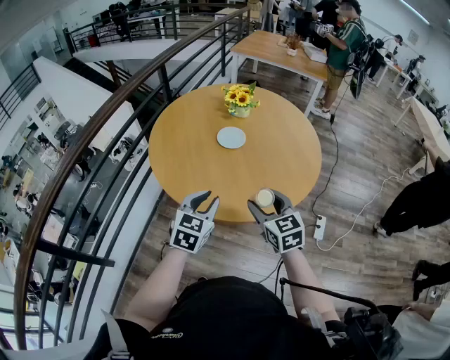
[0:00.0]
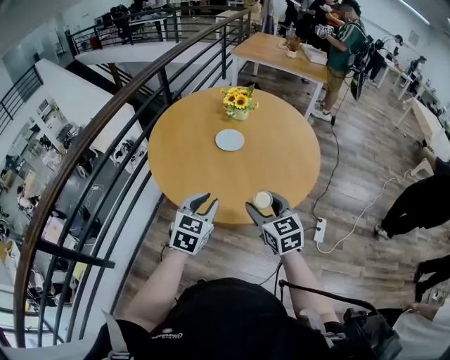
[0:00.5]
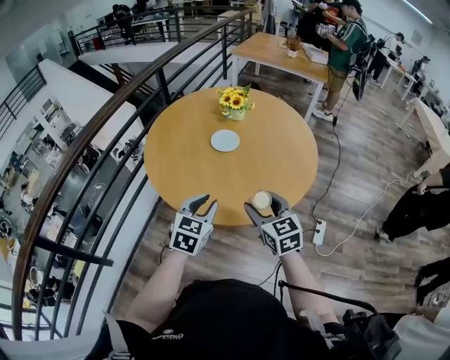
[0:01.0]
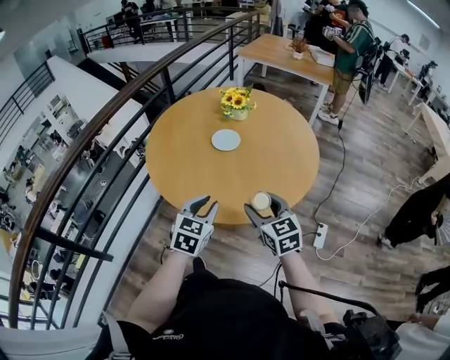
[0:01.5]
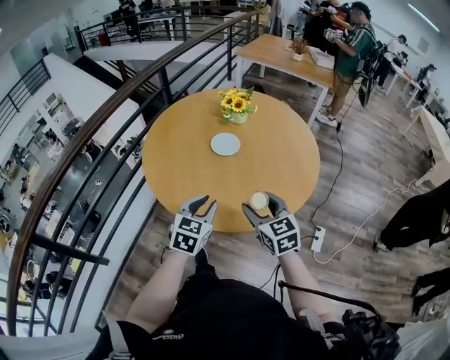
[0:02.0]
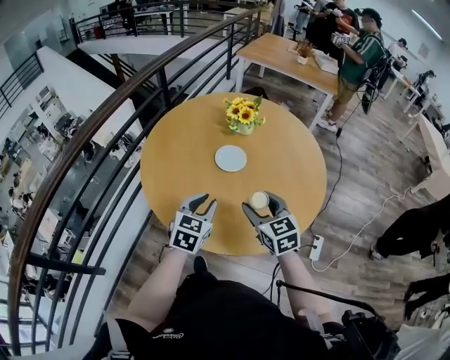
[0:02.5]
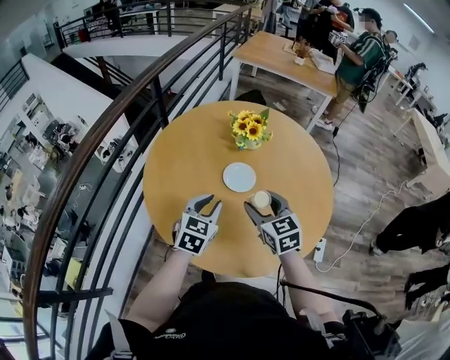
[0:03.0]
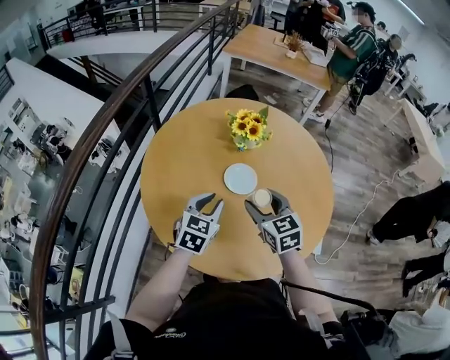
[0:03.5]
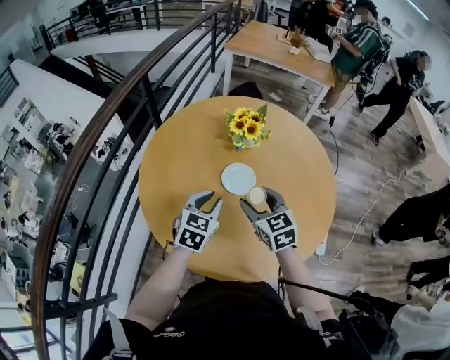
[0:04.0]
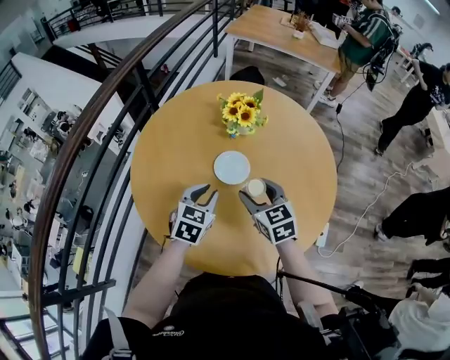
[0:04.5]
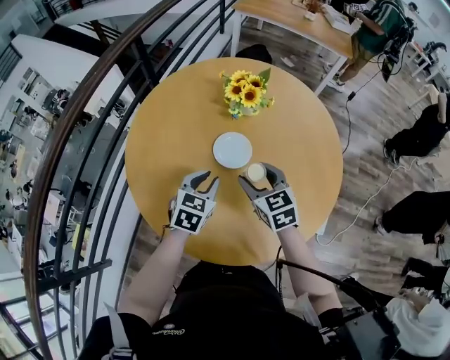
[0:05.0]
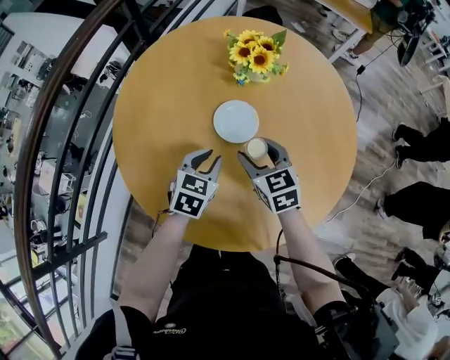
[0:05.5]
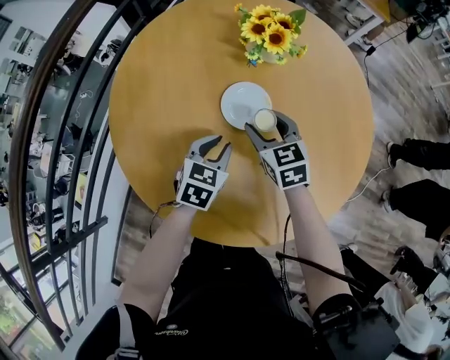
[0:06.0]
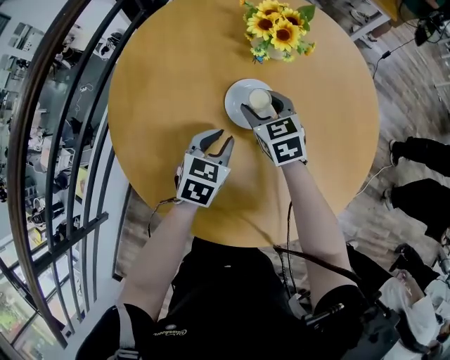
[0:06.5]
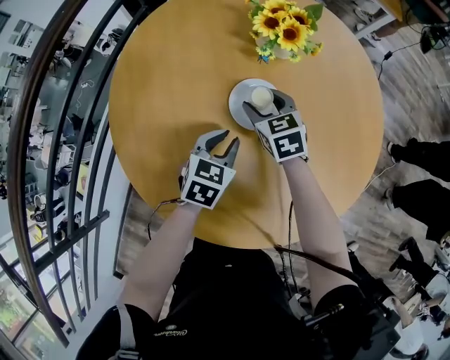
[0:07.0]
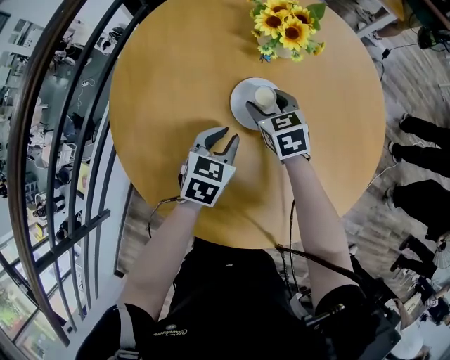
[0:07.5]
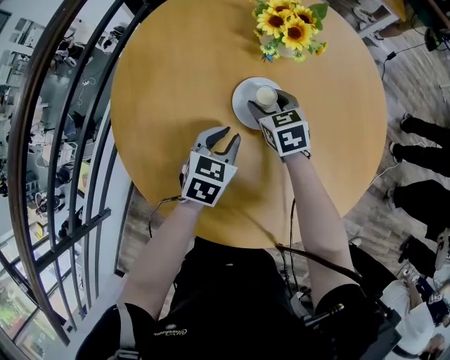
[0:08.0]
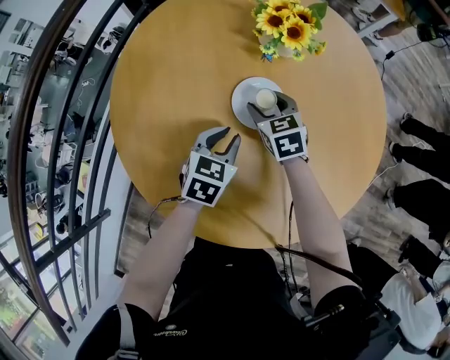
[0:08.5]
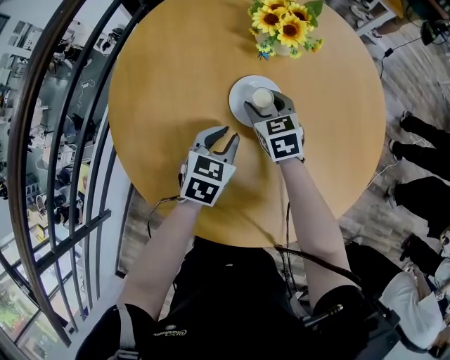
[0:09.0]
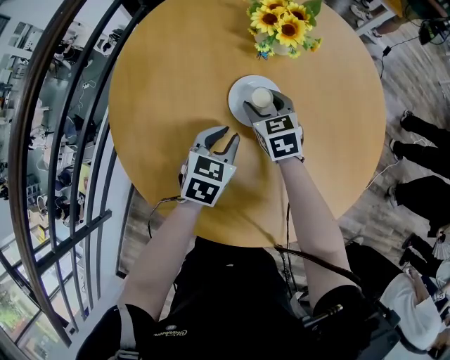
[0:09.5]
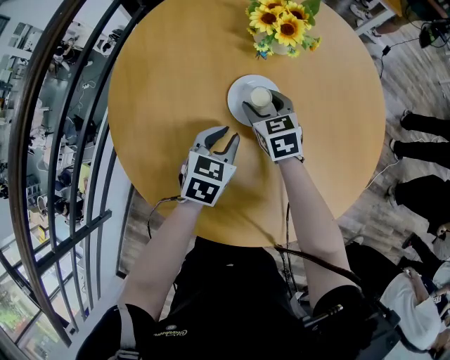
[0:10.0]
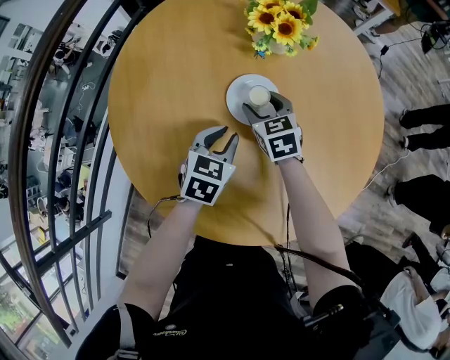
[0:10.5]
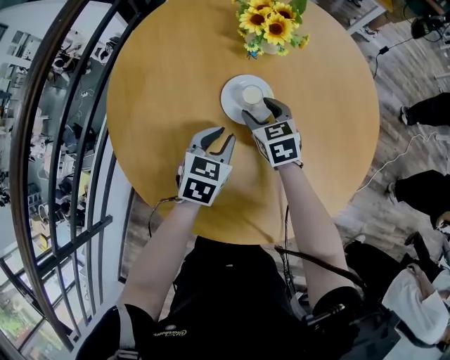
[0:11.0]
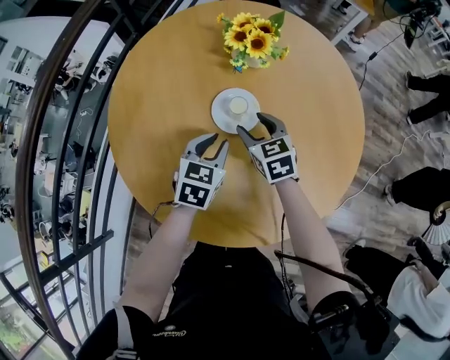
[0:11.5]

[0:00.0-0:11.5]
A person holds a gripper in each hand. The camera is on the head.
0:00.0 to 0:02.0: The right gripper ends up some 5 cm from where it was; the left gripper shifts about 5 cm to the right.
0:02.0 to 0:04.0: The left gripper shifts about 25 cm forward, while the right gripper moves forward and to the left, about 25 cm.
0:04.0 to 0:06.0: The right gripper shifts some 15 cm downward and forward, while the left gripper heads downward, covering approximately 15 cm.
0:06.0 to 0:07.5: The right gripper moves forward, approximately 5 cm.
0:07.5 to 0:09.5: The two grippers keep their place.
0:09.5 to 0:11.5: The right gripper moves backward, about 5 cm.

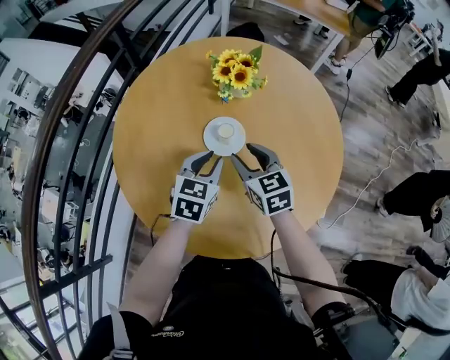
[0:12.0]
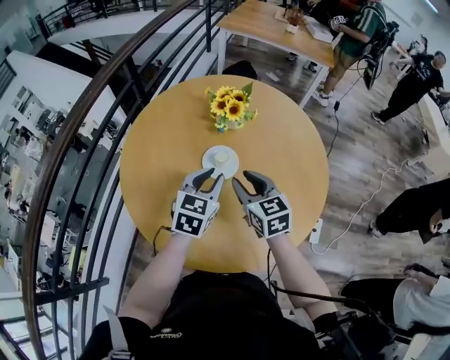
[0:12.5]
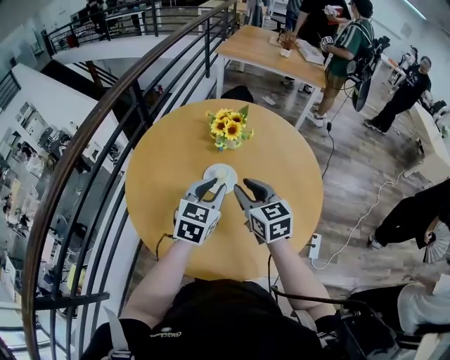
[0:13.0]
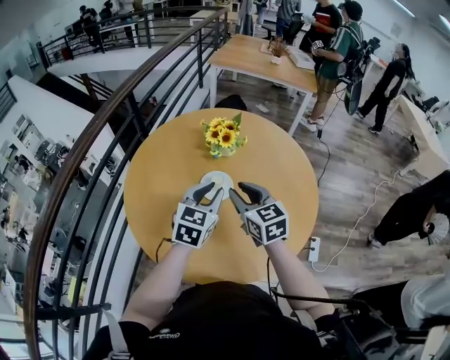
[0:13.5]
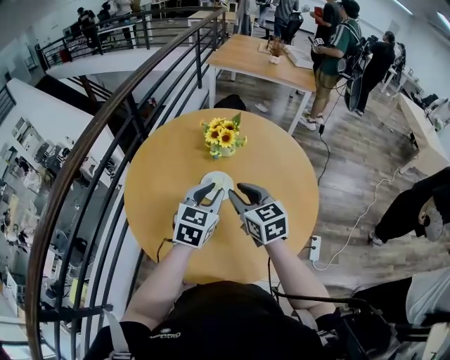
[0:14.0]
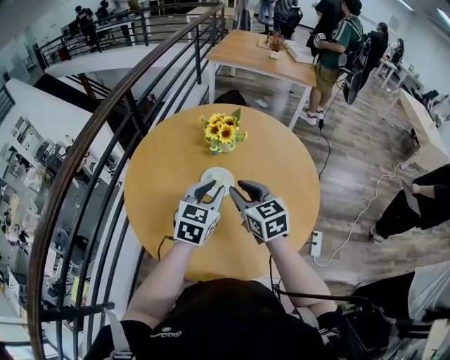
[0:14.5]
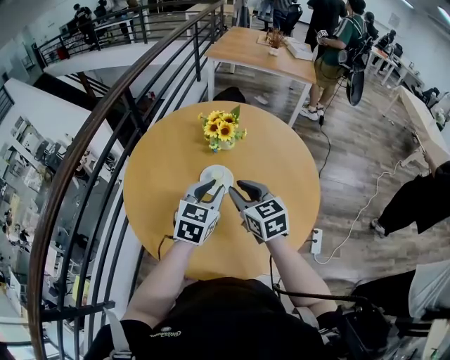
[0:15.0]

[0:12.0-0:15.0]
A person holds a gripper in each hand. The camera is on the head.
0:12.0 to 0:13.5: The right gripper travels upward and backward by roughly 15 cm, while the left gripper shifts approximately 15 cm upward.
0:13.5 to 0:15.0: The grippers make only small movements.

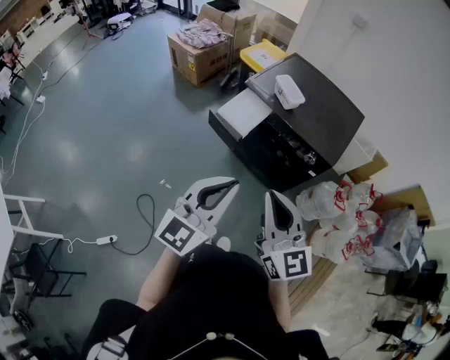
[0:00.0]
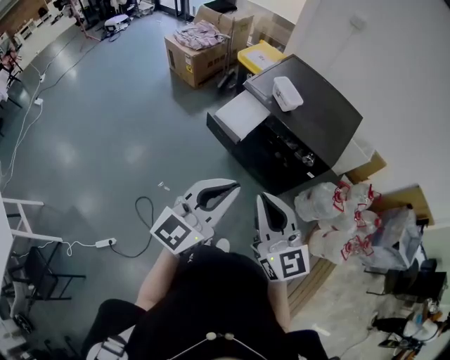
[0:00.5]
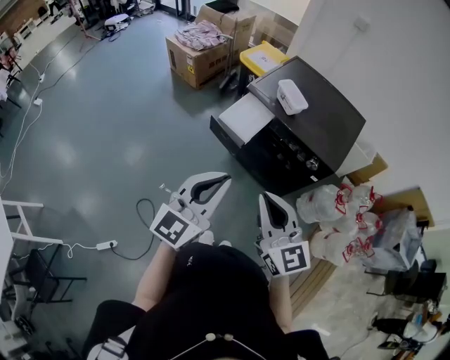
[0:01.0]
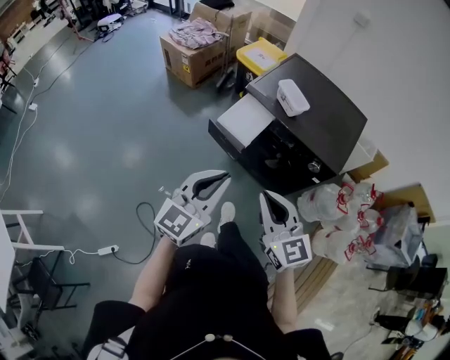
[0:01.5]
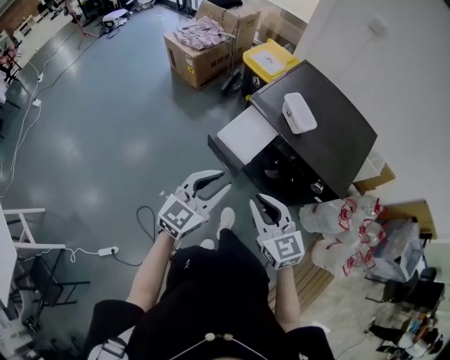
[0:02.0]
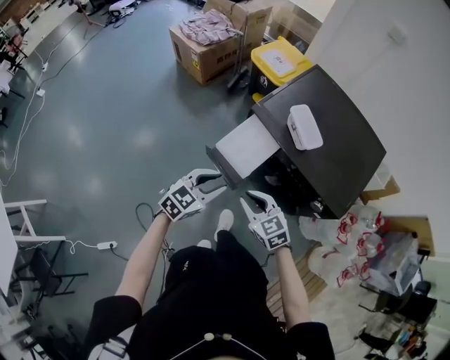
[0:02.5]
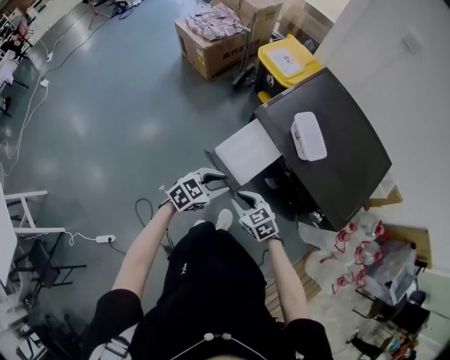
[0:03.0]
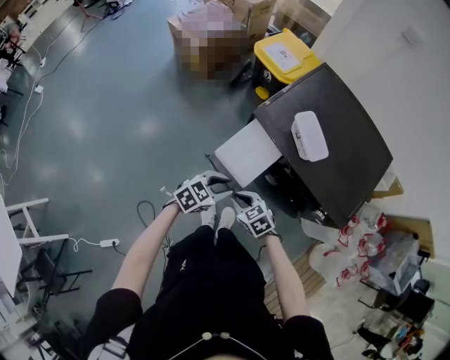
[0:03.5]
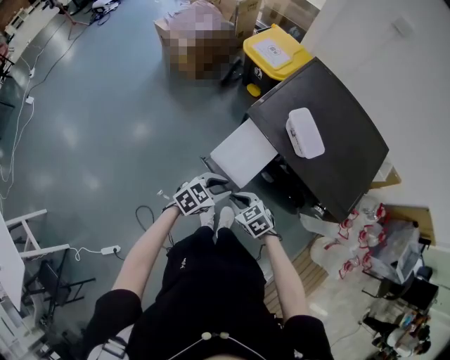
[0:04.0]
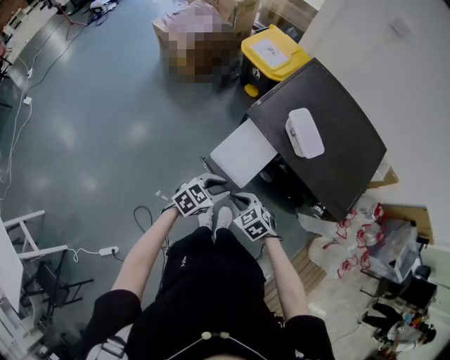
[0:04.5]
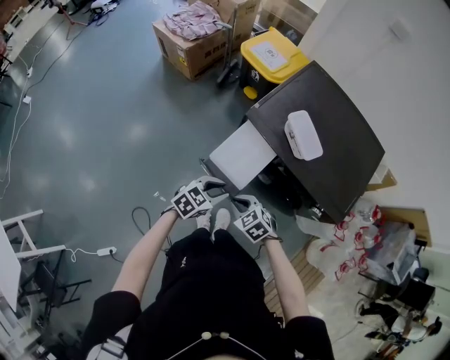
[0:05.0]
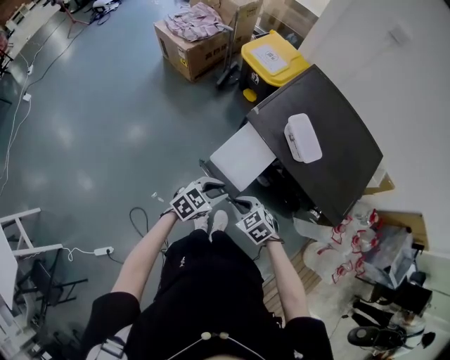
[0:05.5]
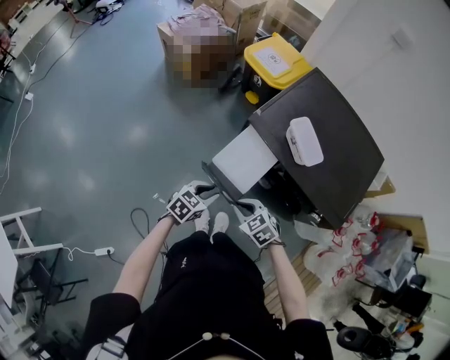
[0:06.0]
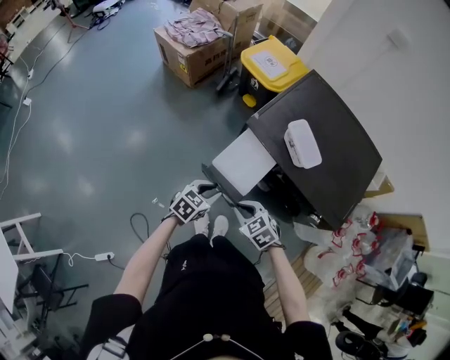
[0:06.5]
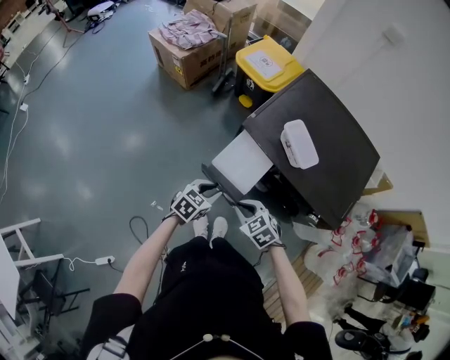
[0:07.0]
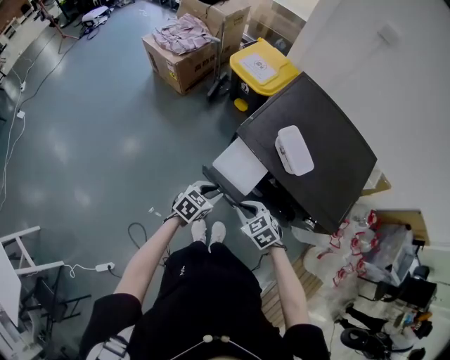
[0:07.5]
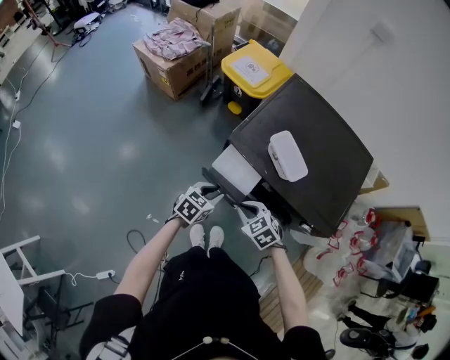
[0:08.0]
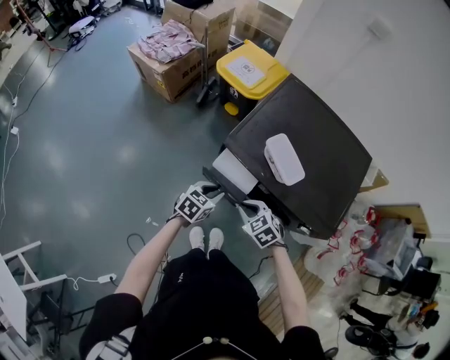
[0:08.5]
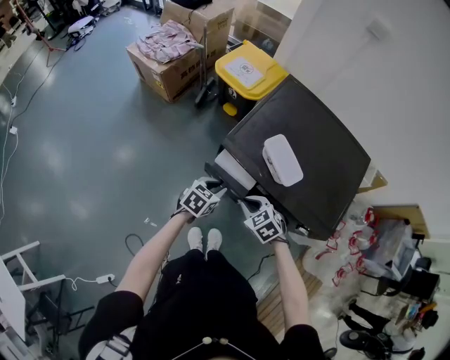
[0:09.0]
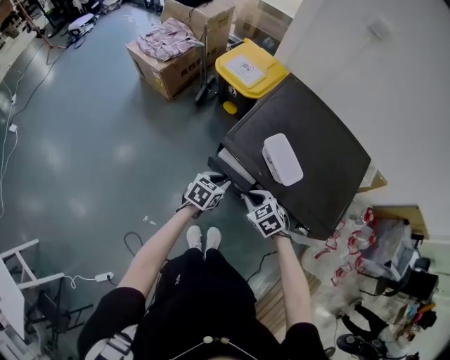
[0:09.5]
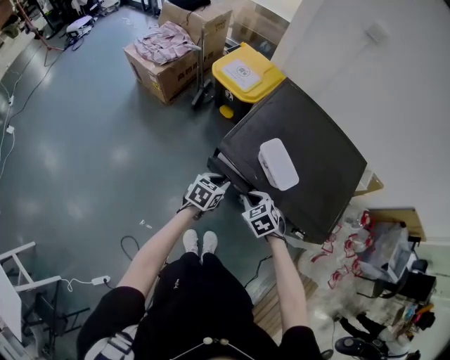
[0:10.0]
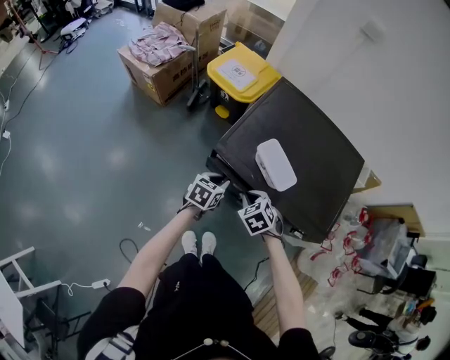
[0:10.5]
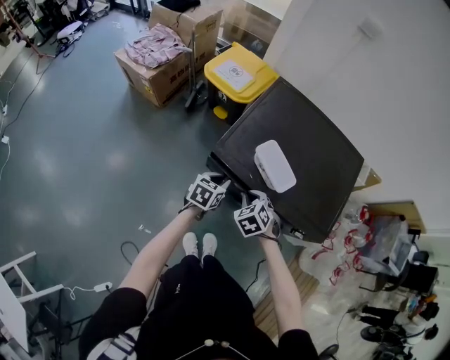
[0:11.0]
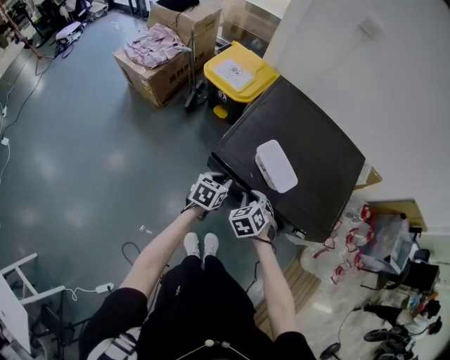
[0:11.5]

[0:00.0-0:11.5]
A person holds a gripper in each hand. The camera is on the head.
0:00.0 to 0:02.0: The two grippers go roughly 20 cm forward and downward. The right gripper changes its angle by some 20 degrees, while the left gripper opens up.
0:02.0 to 0:04.0: The two grippers go about 20 cm downward. The right gripper angles its fingers downward, by about 30 degrees, while the left gripper changes its angle by some 40 degrees.
0:04.0 to 0:06.0: The grippers make only small movements.
0:06.0 to 0:07.5: The right gripper moves about 5 cm; the left gripper goes about 5 cm forward.
0:07.5 to 0:09.5: The two grippers go some 10 cm forward and to the right.
0:09.5 to 0:11.5: The right gripper changes its angle by about 30 degrees.

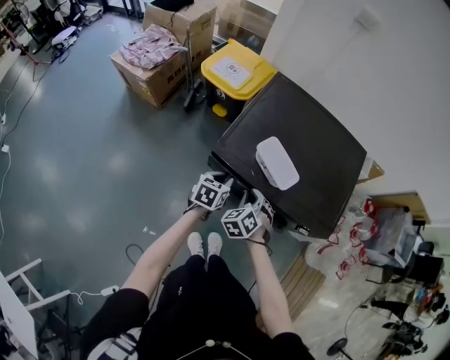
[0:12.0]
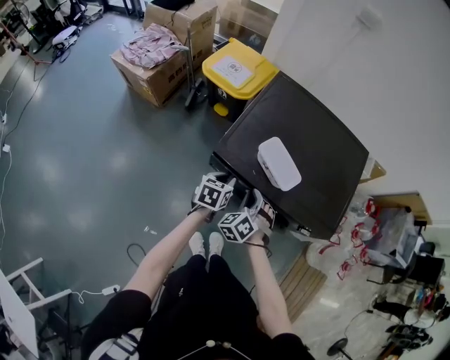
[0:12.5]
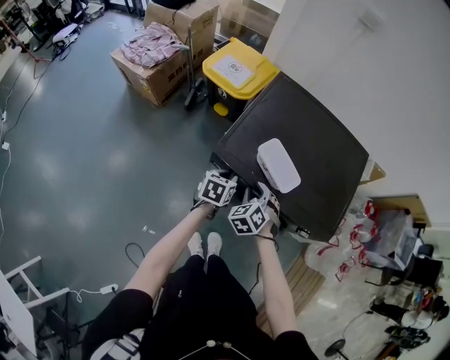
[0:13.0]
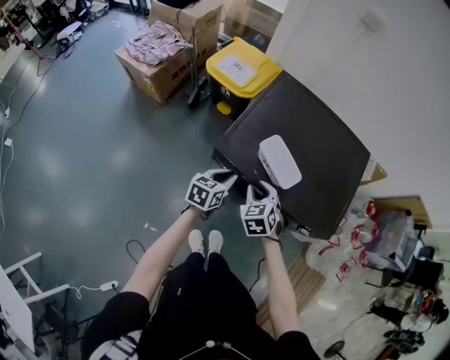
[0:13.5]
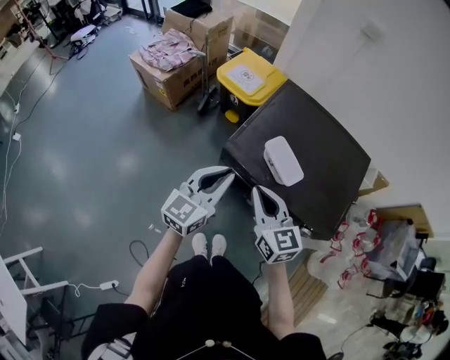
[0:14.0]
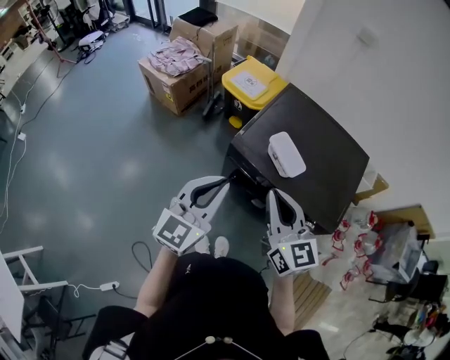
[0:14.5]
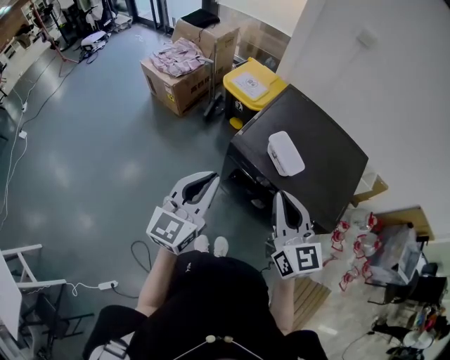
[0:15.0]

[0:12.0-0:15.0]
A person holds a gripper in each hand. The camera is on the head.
0:12.0 to 0:13.5: The grippers make only small movements.
0:13.5 to 0:15.0: The two grippers go roughly 30 cm upward and backward. The left gripper angles its fingers upward, by some 30 degrees, while the right gripper angles its fingers upward, by some 40 degrees, and closes up.
